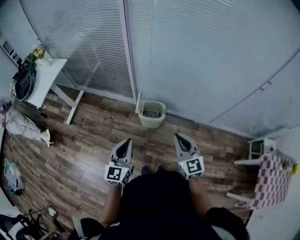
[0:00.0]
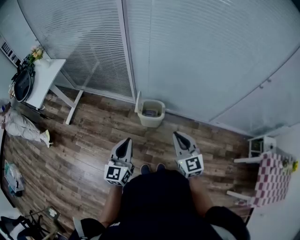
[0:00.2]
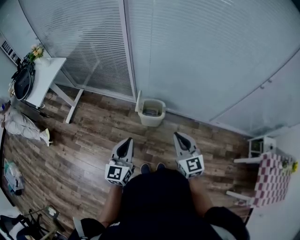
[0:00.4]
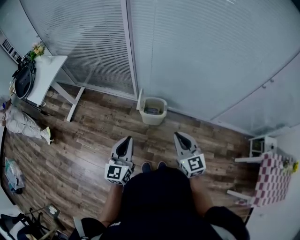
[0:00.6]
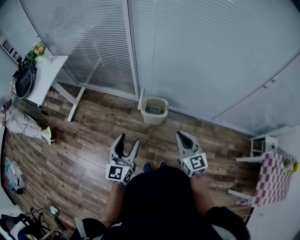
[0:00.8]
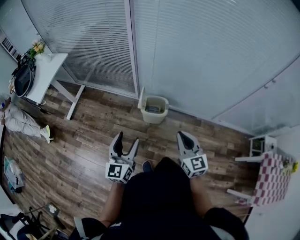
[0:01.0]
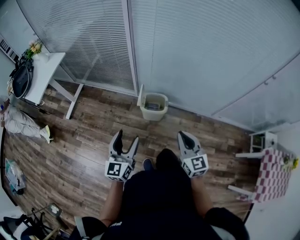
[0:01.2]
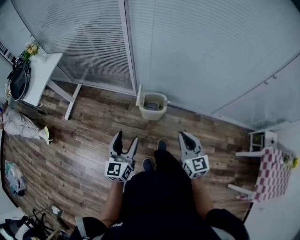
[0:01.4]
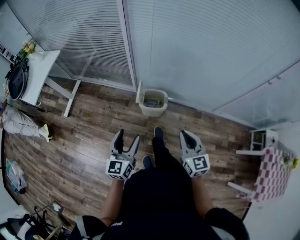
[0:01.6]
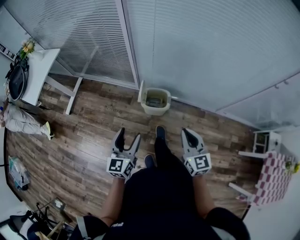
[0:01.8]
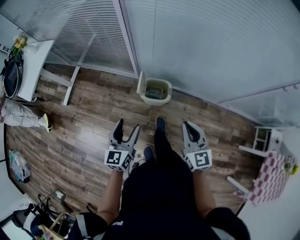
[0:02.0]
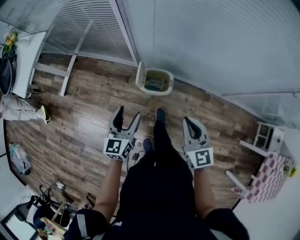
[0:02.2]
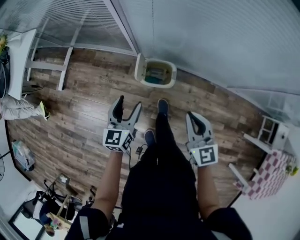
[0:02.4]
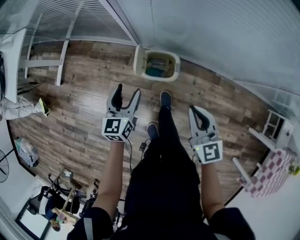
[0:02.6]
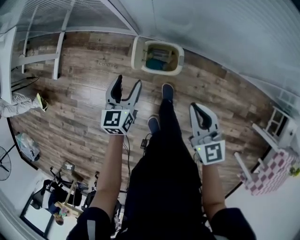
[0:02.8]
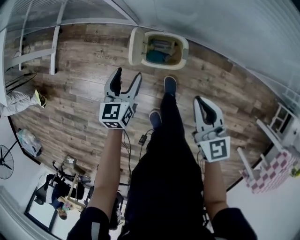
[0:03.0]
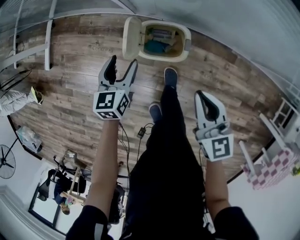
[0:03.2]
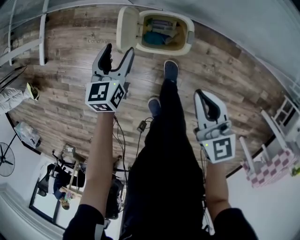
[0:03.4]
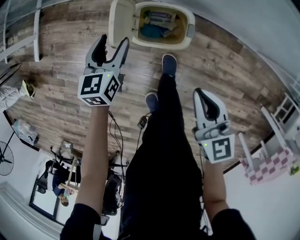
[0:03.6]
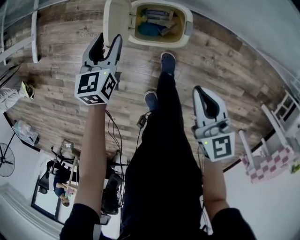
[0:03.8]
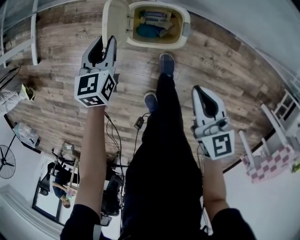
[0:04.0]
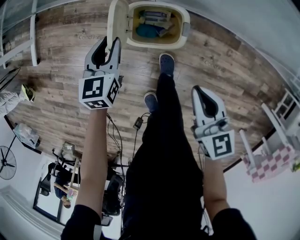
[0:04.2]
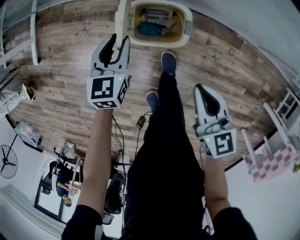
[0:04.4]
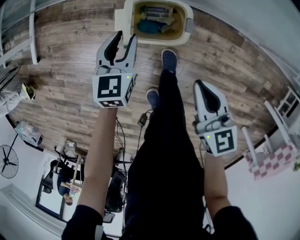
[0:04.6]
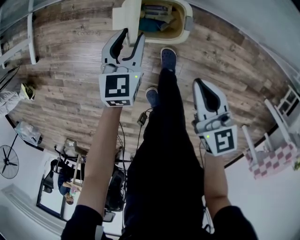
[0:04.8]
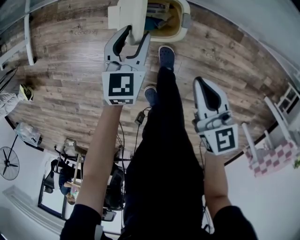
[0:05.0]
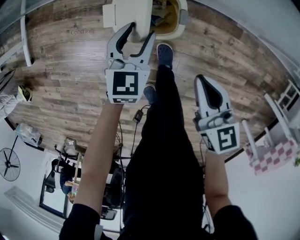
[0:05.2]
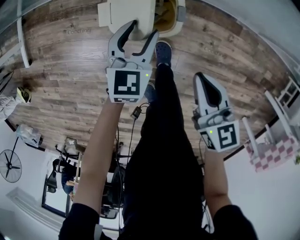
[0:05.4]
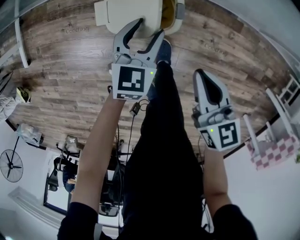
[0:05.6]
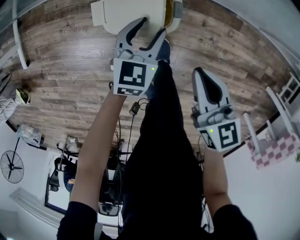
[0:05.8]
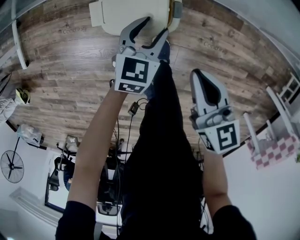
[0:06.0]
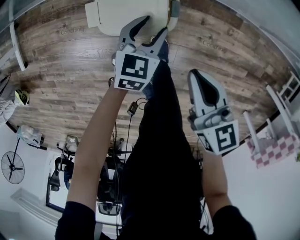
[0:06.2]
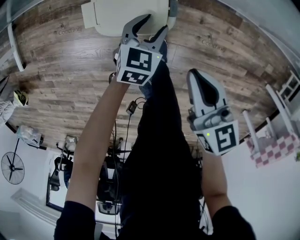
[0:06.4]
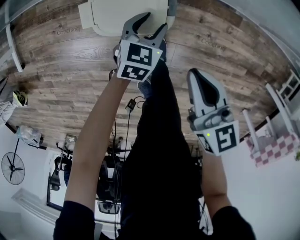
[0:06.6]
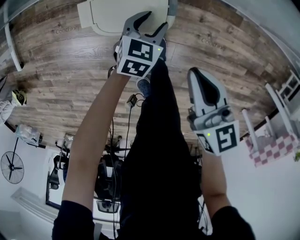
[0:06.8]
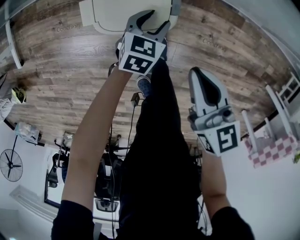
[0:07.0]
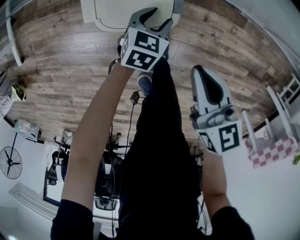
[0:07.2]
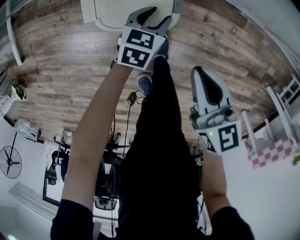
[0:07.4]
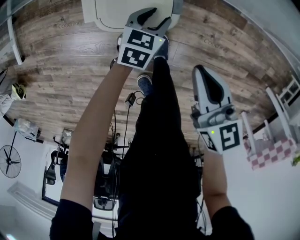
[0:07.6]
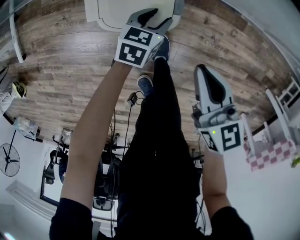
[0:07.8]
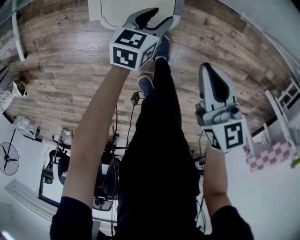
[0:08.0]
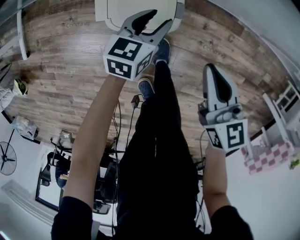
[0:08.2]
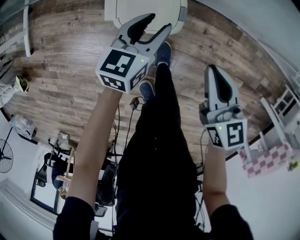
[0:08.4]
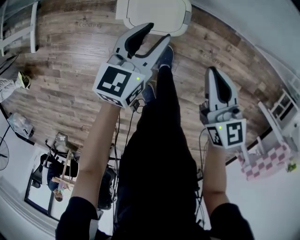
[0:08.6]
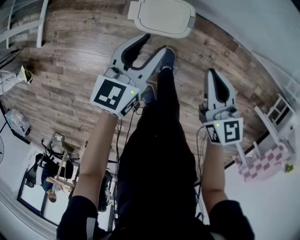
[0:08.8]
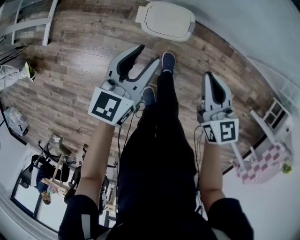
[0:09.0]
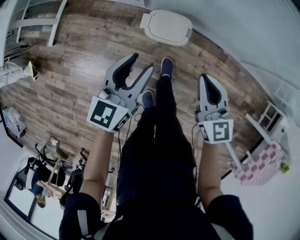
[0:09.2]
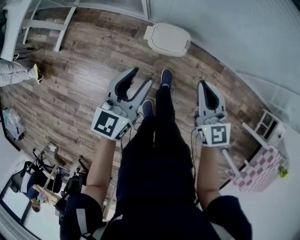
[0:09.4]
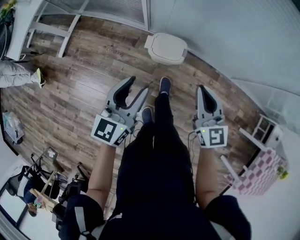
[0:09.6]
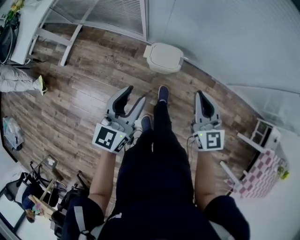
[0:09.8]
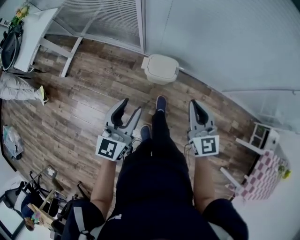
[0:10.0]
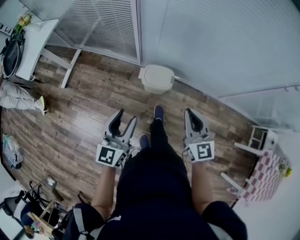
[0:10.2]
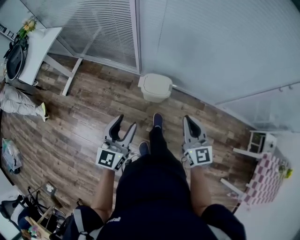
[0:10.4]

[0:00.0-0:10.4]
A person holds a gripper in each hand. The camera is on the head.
0:00.0 to 0:01.4: The left gripper opens.
0:01.4 to 0:03.0: The left gripper travels downward and forward by roughly 40 cm, and rotates some 30 degrees. The right gripper heads forward and downward, covering roughly 30 cm.
0:03.0 to 0:04.4: Both grippers travel together downward, approximately 10 cm. The left gripper closes up.
0:04.4 to 0:06.0: The left gripper is displaced to the right and downward by approximately 15 cm, and changes its angle by roughly 20 degrees.
0:06.0 to 0:07.4: The left gripper travels downward by some 10 cm.
0:07.4 to 0:09.0: The right gripper moves upward, about 20 cm. The left gripper is displaced upward by approximately 35 cm, and changes its angle by some 30 degrees.
0:09.0 to 0:10.4: The right gripper goes some 25 cm upward and backward. Meanwhile the left gripper heads upward, backward and to the left, covering about 30 cm, and turns by approximately 20 degrees.

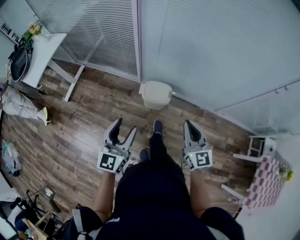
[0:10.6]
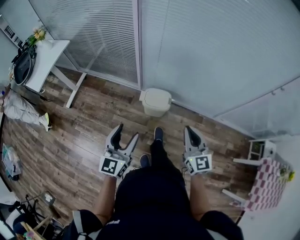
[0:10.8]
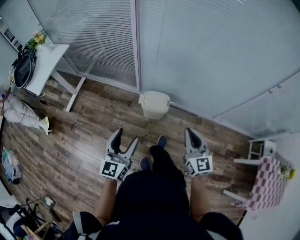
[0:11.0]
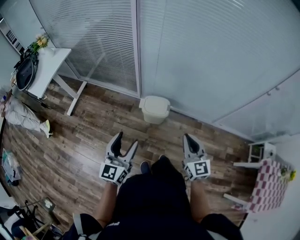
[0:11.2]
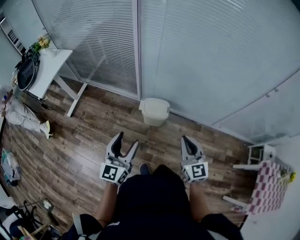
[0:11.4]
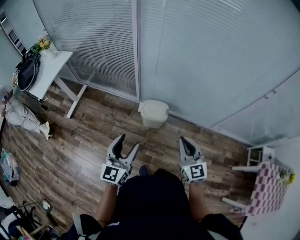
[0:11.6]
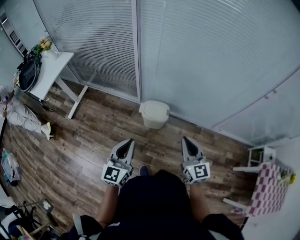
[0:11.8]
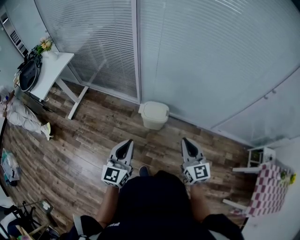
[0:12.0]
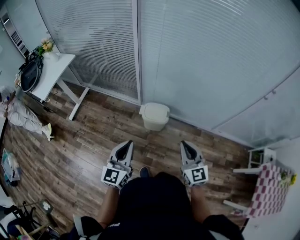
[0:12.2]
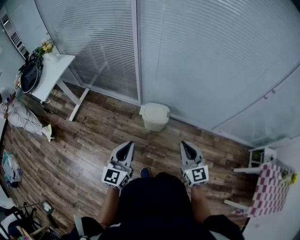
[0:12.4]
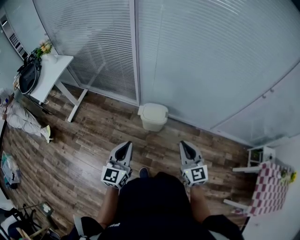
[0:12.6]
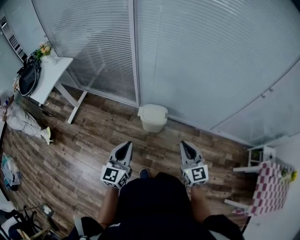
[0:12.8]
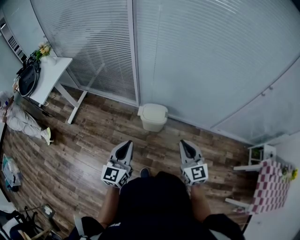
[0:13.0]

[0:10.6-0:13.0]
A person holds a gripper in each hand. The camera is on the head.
0:10.6 to 0:11.8: The right gripper shifts by about 5 cm. The left gripper shifts by roughly 5 cm, and closes its fingers.
0:11.8 to 0:13.0: The grippers stay close to where they were, moving slightly.

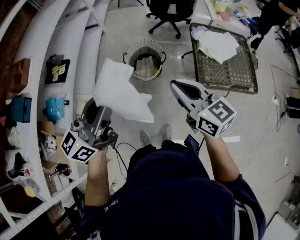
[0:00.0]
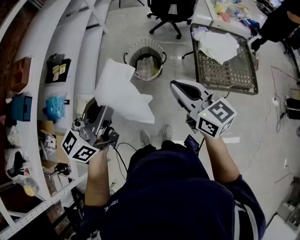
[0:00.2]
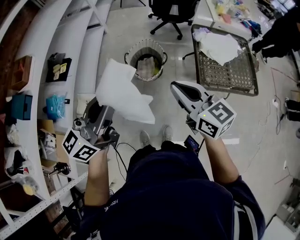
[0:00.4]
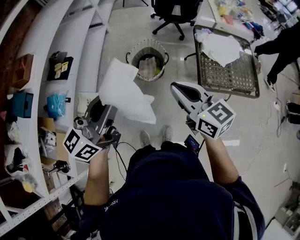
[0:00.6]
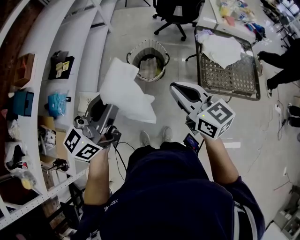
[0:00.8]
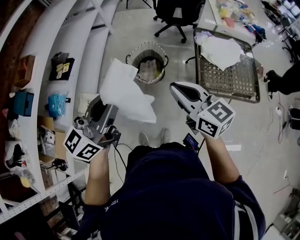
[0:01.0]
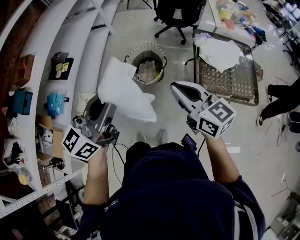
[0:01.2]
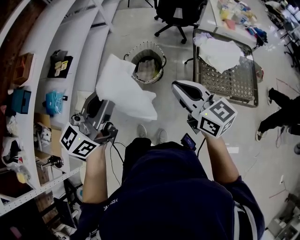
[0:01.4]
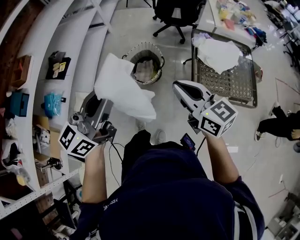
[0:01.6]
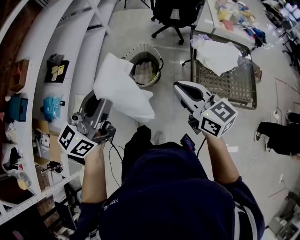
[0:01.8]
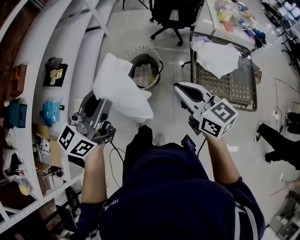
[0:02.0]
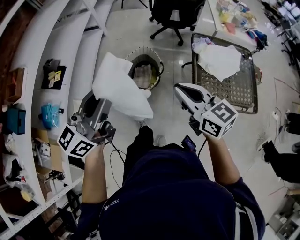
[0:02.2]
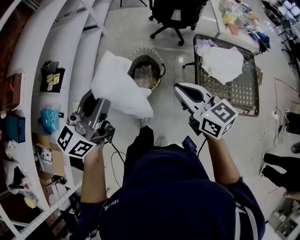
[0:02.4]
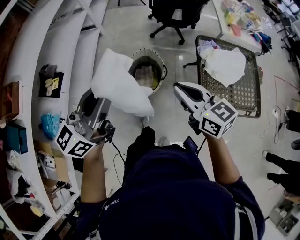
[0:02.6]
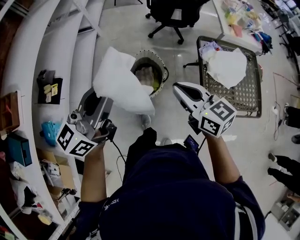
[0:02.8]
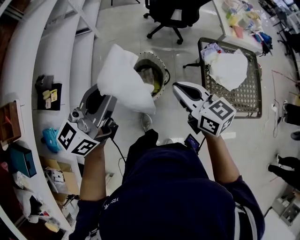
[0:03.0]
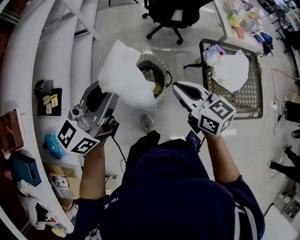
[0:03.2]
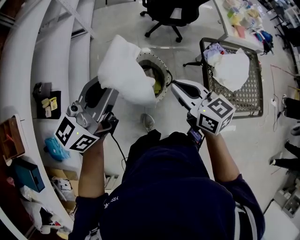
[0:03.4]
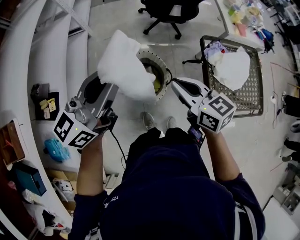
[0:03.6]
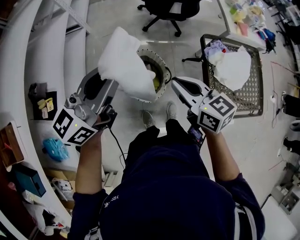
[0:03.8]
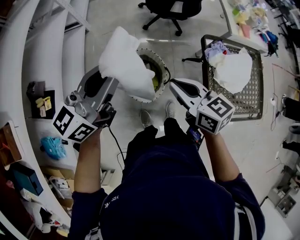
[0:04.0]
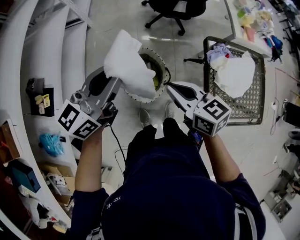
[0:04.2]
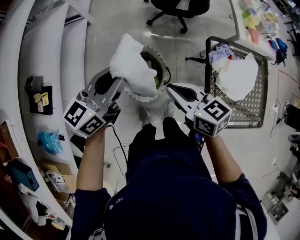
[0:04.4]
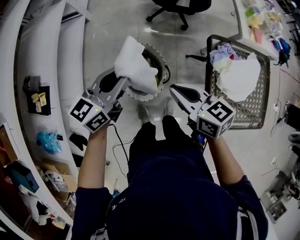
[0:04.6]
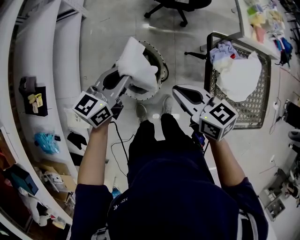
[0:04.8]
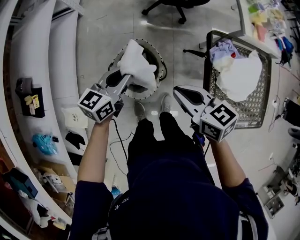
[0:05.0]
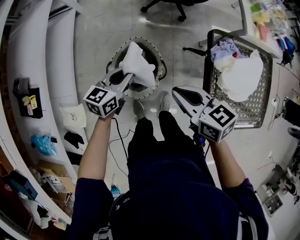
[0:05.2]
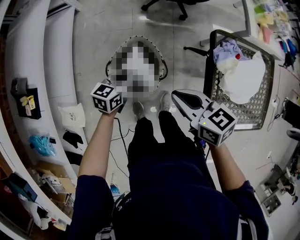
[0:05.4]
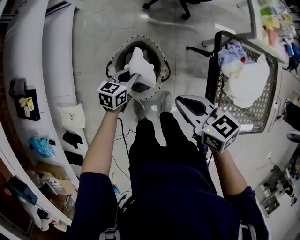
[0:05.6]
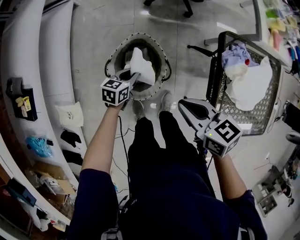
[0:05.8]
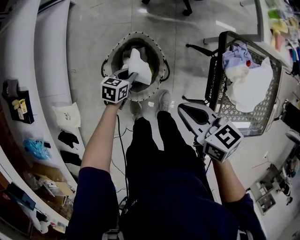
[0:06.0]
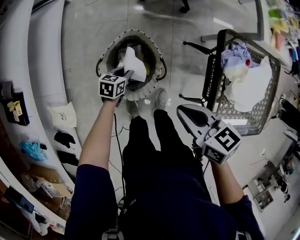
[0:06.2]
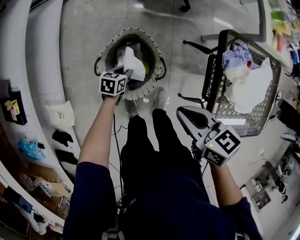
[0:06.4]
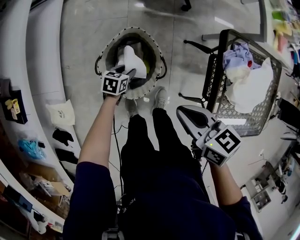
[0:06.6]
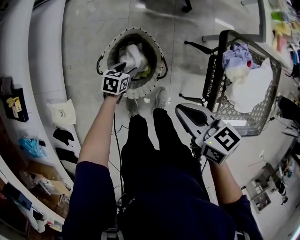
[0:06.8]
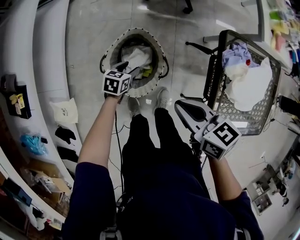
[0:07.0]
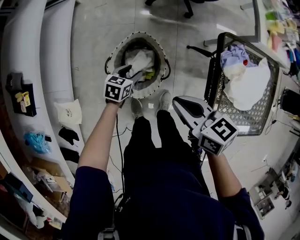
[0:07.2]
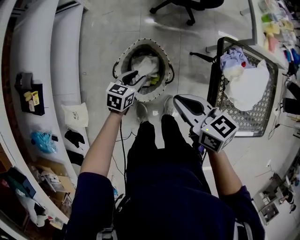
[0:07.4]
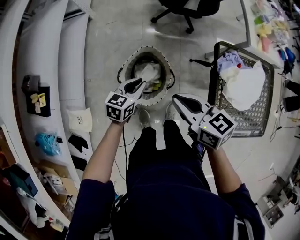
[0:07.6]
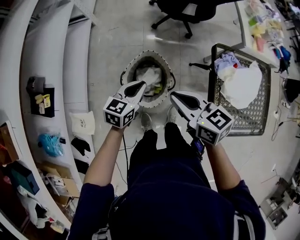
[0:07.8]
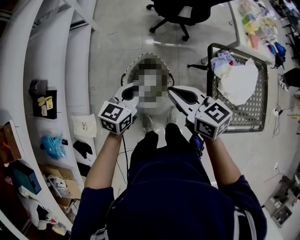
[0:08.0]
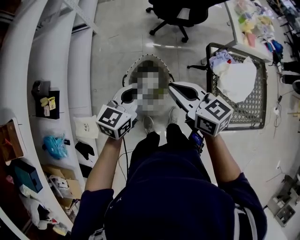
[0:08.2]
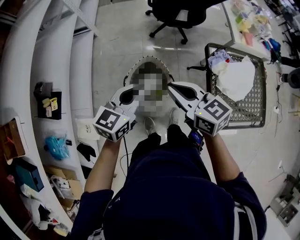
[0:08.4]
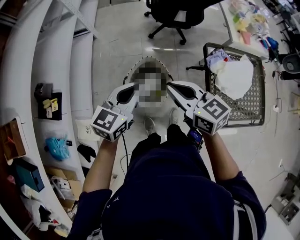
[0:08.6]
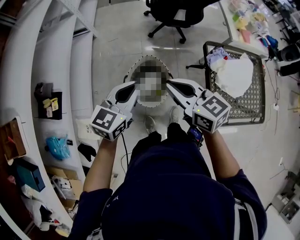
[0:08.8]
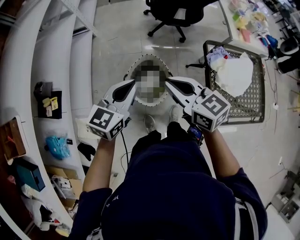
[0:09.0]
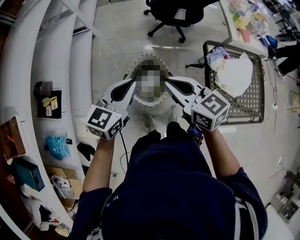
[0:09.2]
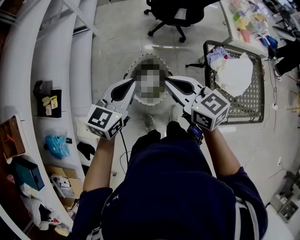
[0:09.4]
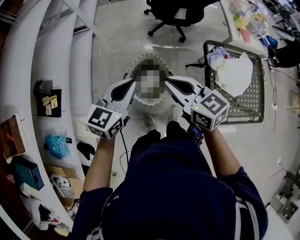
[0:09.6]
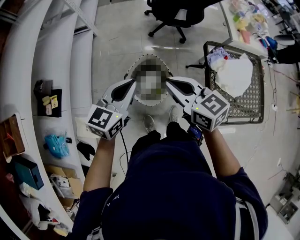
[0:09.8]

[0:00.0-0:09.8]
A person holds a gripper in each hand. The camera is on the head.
0:00.0 to 0:01.4: The two grippers go approximately 5 cm to the right.
0:01.4 to 0:02.8: The two grippers go some 25 cm forward.
0:02.8 to 0:04.2: The two grippers go approximately 20 cm forward and downward.
0:04.2 to 0:05.6: The left gripper travels downward by some 40 cm, and tilts its fingers approximately 40 degrees downward, while the right gripper moves downward, some 10 cm.
0:05.6 to 0:07.0: The left gripper moves downward, roughly 10 cm, and opens up.
0:07.0 to 0:08.4: The right gripper goes some 20 cm upward, and turns by some 30 degrees, while the left gripper shifts about 40 cm upward, angles its fingers upward, by some 30 degrees, and closes.
0:08.4 to 0:09.8: The grippers make only small movements.

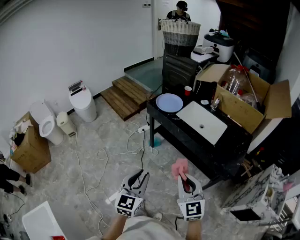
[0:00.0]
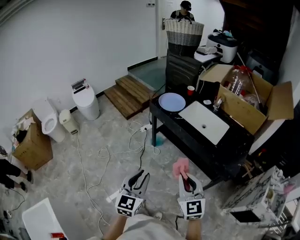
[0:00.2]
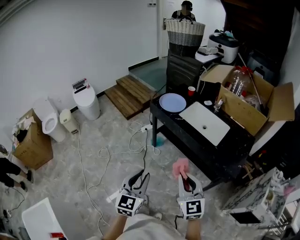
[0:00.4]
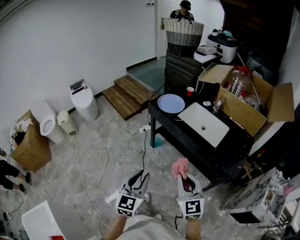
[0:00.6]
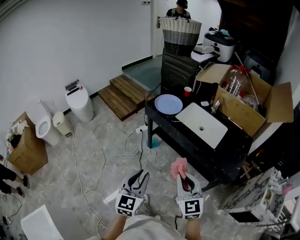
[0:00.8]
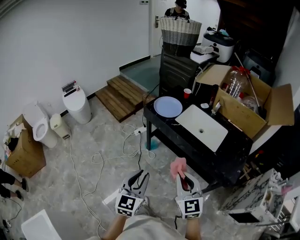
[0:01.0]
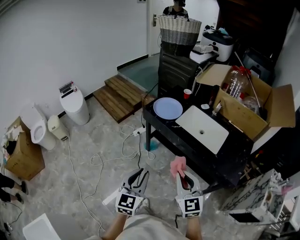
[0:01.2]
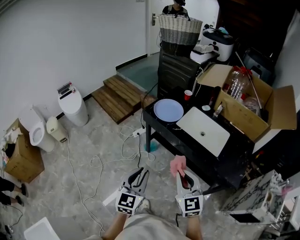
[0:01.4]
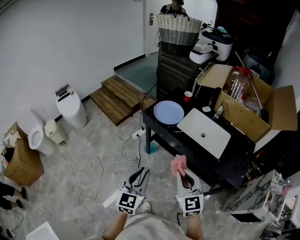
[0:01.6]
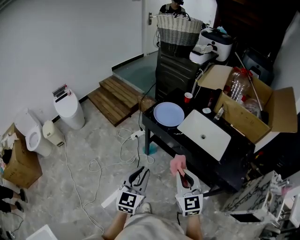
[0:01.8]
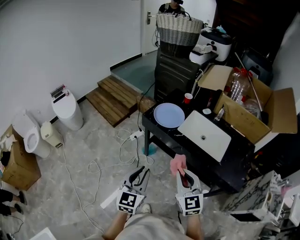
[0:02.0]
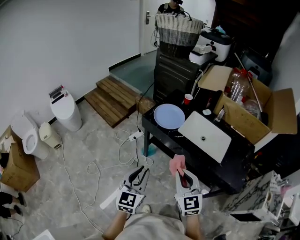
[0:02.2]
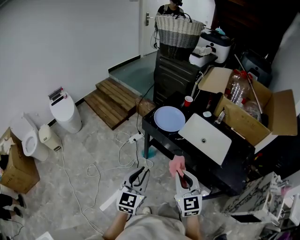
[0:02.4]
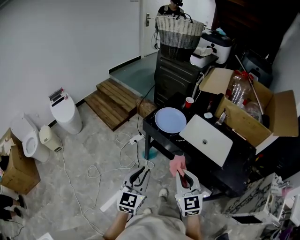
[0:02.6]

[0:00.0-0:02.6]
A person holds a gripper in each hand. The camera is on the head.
0:00.0 to 0:01.2: Both grippers travel together forward, roughly 15 cm.
0:01.2 to 0:02.6: The two grippers go about 15 cm forward and to the left.
